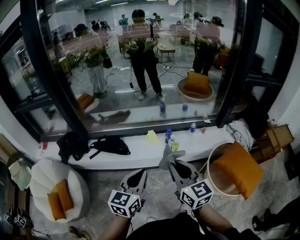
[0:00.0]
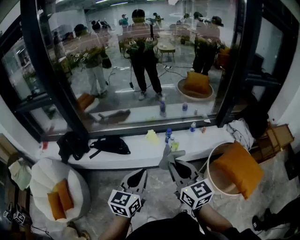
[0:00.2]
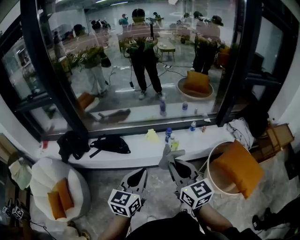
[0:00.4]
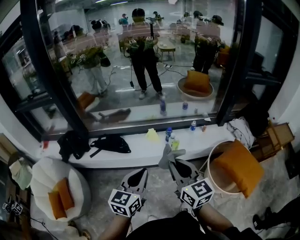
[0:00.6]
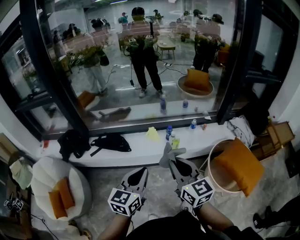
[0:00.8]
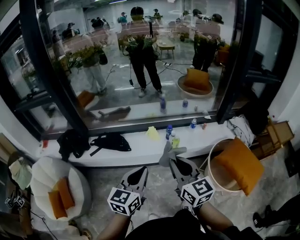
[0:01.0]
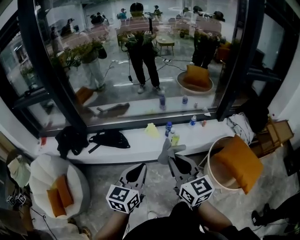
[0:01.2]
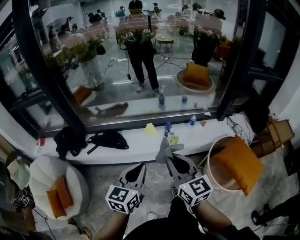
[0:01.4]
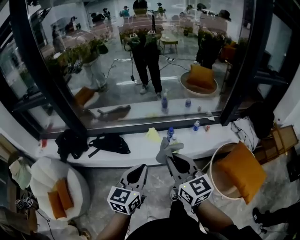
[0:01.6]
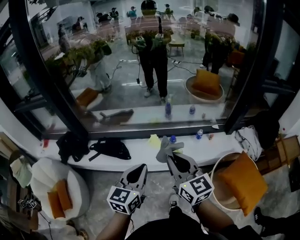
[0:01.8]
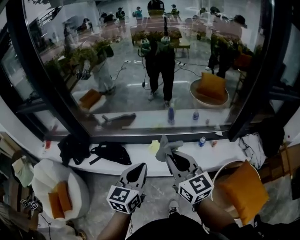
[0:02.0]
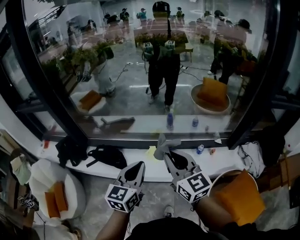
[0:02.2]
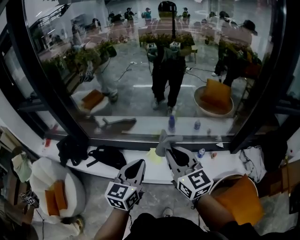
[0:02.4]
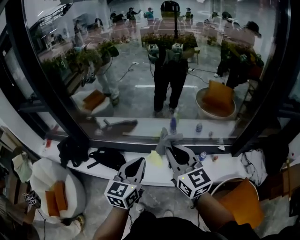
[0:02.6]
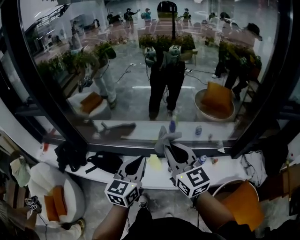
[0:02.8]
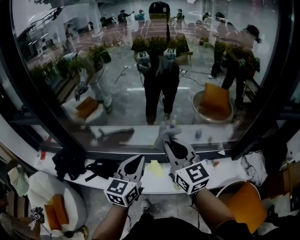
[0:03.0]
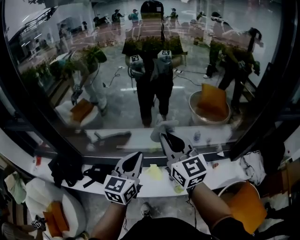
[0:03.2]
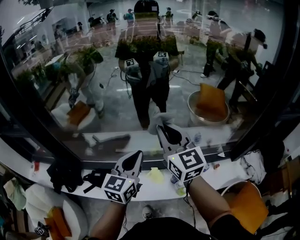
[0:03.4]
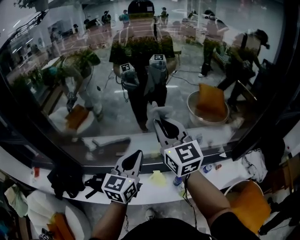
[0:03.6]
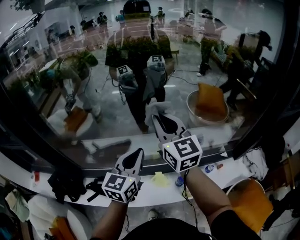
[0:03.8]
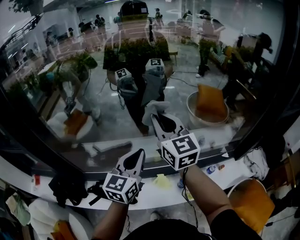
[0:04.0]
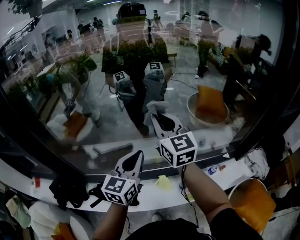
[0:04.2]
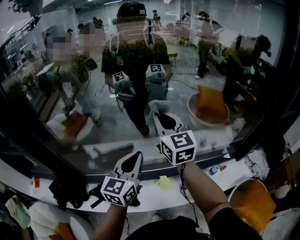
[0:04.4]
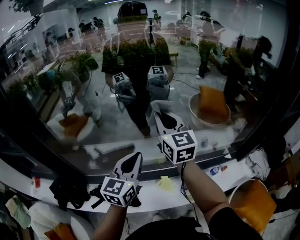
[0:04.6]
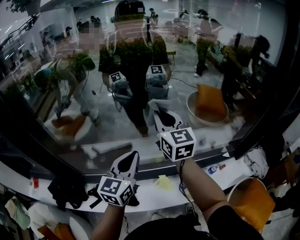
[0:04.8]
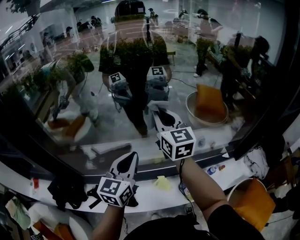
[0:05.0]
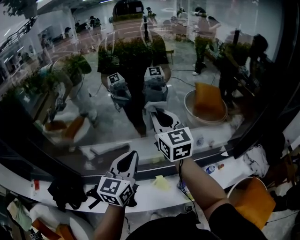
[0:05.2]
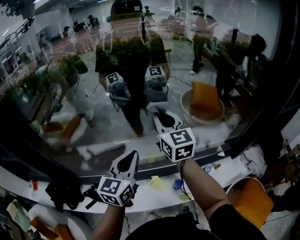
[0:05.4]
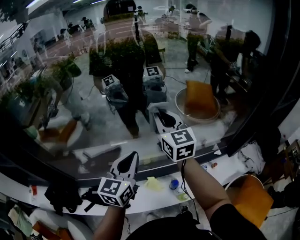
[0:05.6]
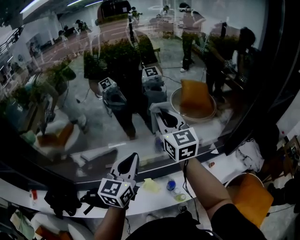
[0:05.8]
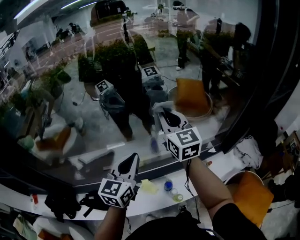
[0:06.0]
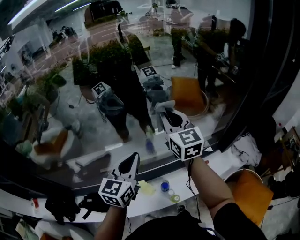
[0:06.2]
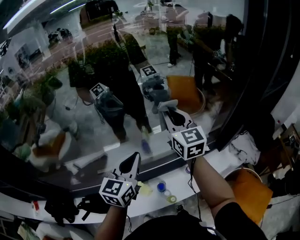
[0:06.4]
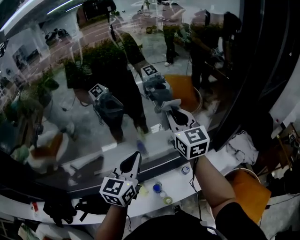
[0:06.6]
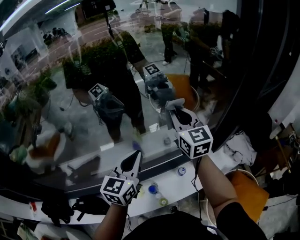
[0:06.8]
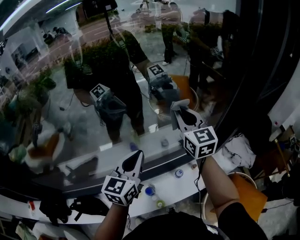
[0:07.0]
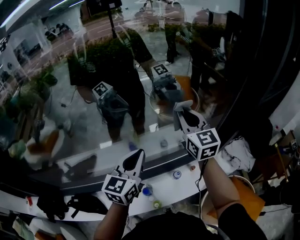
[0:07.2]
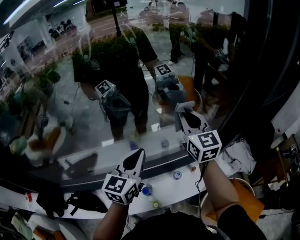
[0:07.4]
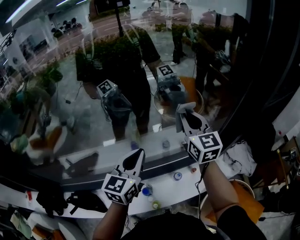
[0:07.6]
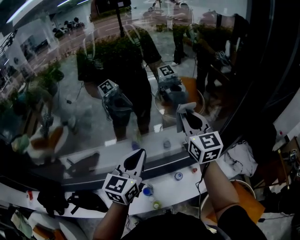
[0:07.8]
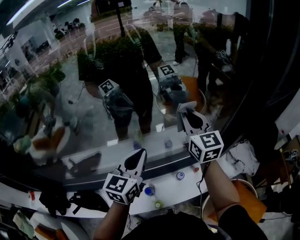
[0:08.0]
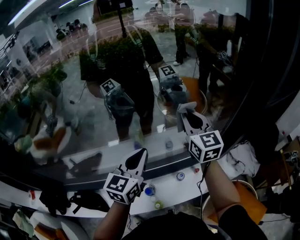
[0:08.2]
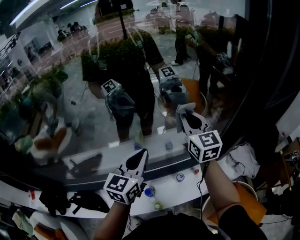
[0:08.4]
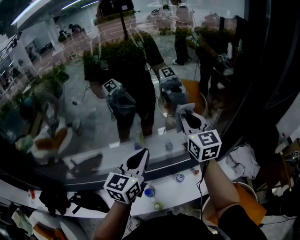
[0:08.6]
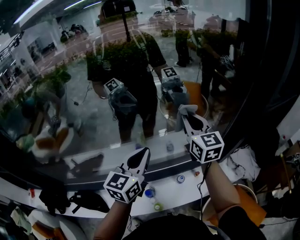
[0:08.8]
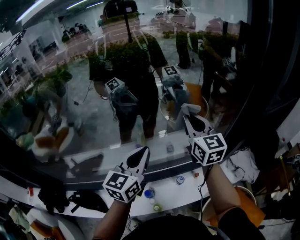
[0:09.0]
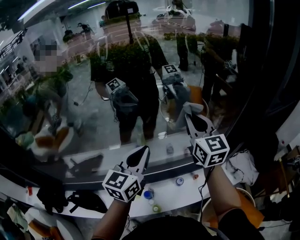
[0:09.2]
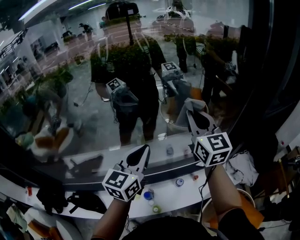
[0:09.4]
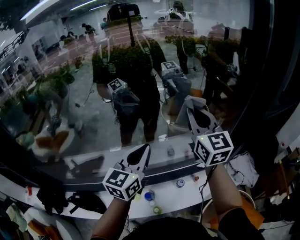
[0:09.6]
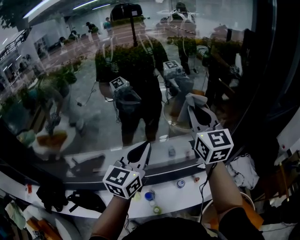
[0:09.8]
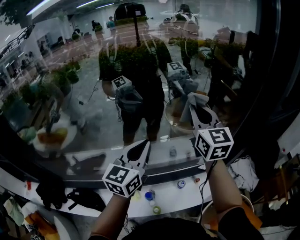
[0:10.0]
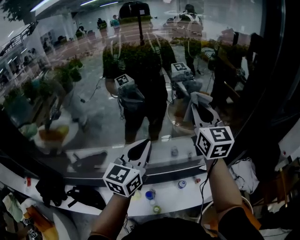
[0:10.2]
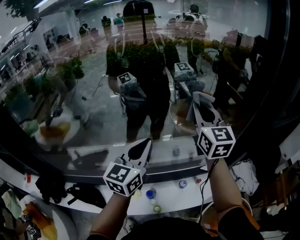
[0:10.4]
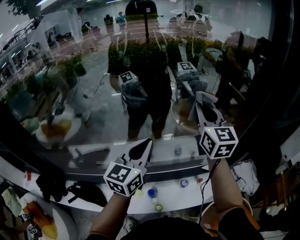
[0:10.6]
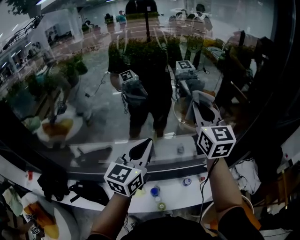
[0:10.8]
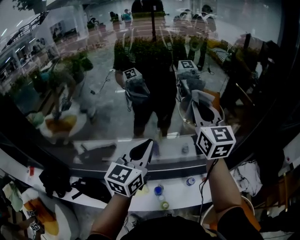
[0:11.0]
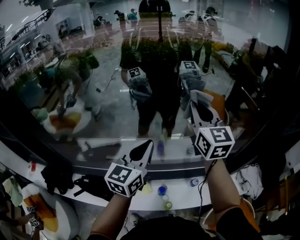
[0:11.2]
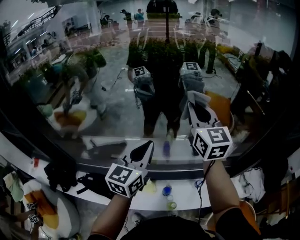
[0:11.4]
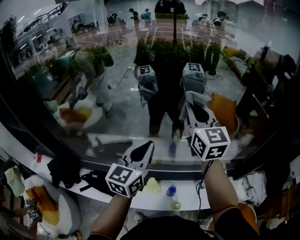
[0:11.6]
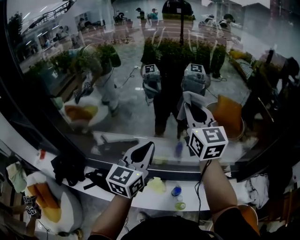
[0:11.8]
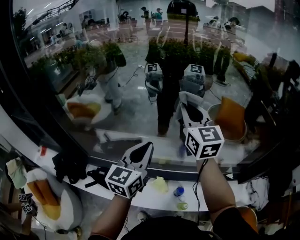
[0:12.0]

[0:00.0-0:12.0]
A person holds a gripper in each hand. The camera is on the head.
0:00.0 to 0:01.6: Both grippers travel together forward, approximately 10 cm.
0:01.6 to 0:03.0: Both grippers travel together forward, about 35 cm.
0:03.0 to 0:04.4: Both grippers travel together forward and to the left, some 20 cm.
0:04.4 to 0:06.0: Both grippers move to the right, roughly 15 cm.
0:06.0 to 0:07.6: The right gripper moves to the right, some 25 cm. Meanwhile the left gripper moves to the right and forward, some 20 cm.
0:07.6 to 0:09.0: The grippers move only a little.
0:09.0 to 0:10.4: The left gripper changes place by approximately 5 cm. The right gripper travels upward by about 10 cm.
0:10.4 to 0:12.0: Both grippers move to the left, roughly 30 cm.

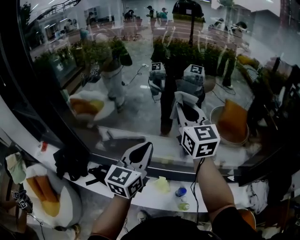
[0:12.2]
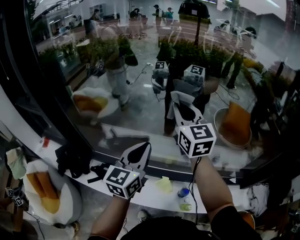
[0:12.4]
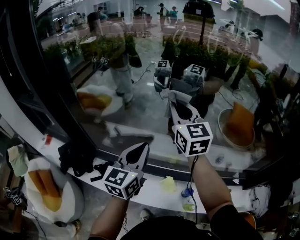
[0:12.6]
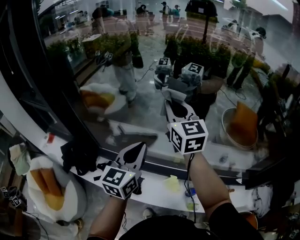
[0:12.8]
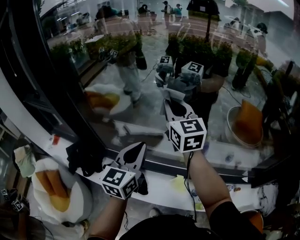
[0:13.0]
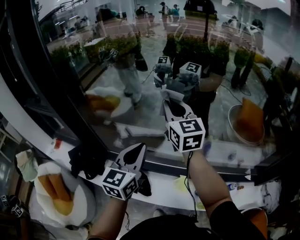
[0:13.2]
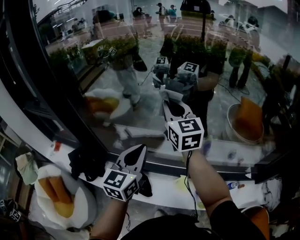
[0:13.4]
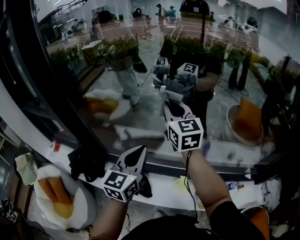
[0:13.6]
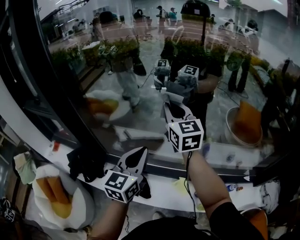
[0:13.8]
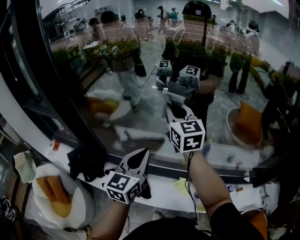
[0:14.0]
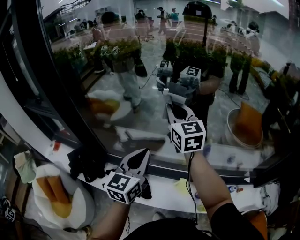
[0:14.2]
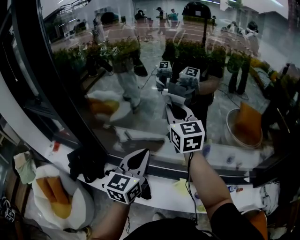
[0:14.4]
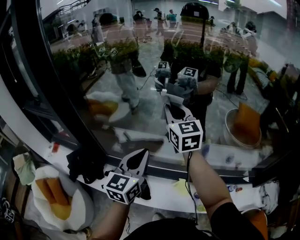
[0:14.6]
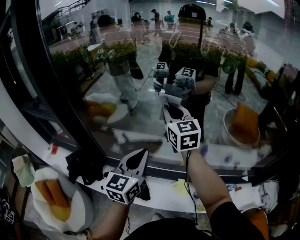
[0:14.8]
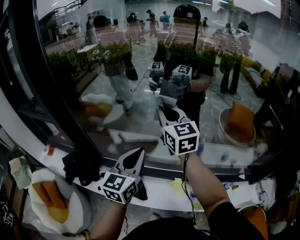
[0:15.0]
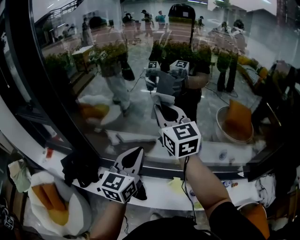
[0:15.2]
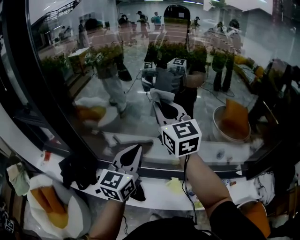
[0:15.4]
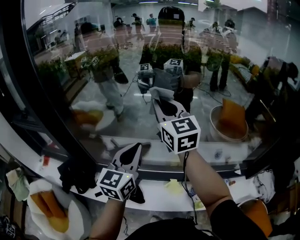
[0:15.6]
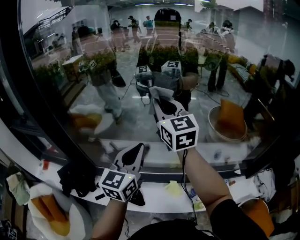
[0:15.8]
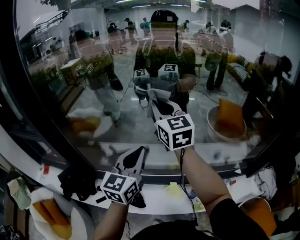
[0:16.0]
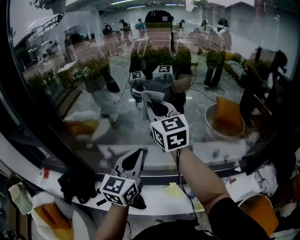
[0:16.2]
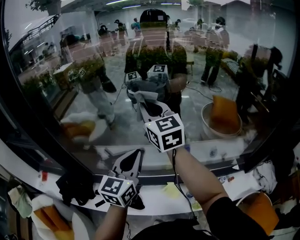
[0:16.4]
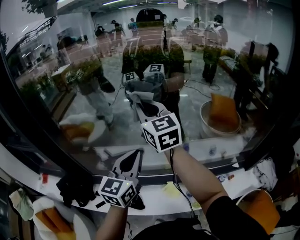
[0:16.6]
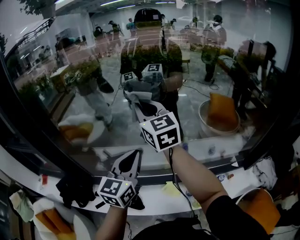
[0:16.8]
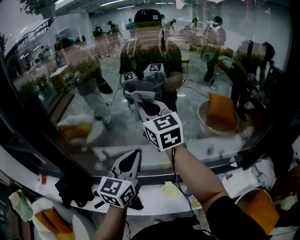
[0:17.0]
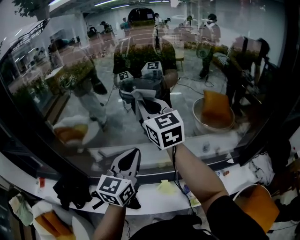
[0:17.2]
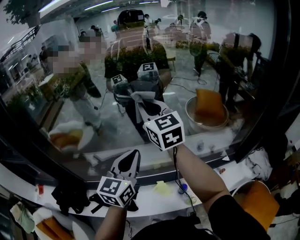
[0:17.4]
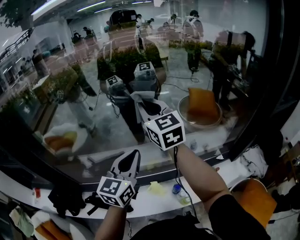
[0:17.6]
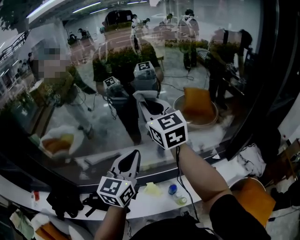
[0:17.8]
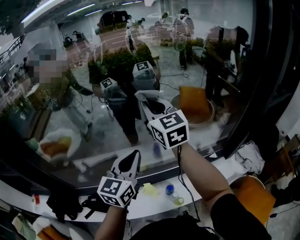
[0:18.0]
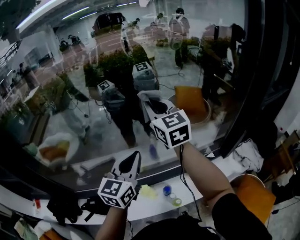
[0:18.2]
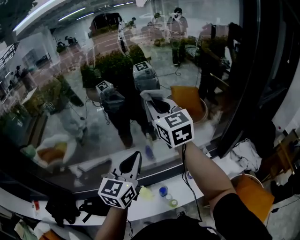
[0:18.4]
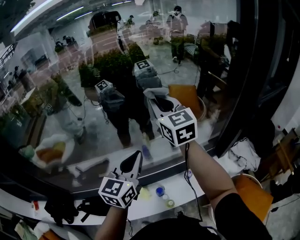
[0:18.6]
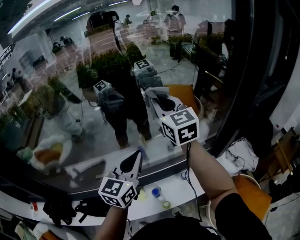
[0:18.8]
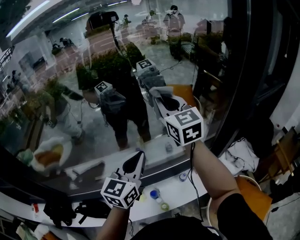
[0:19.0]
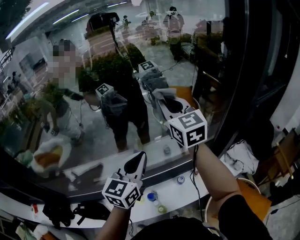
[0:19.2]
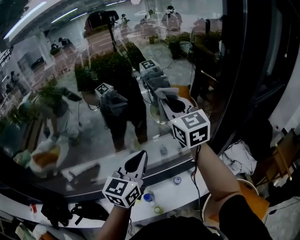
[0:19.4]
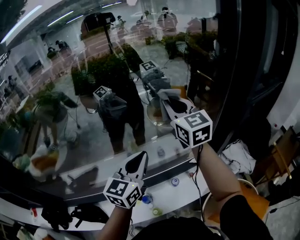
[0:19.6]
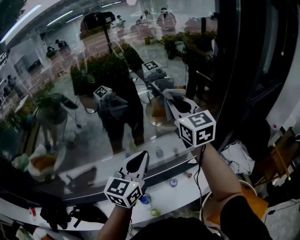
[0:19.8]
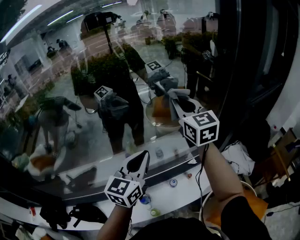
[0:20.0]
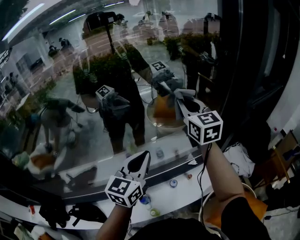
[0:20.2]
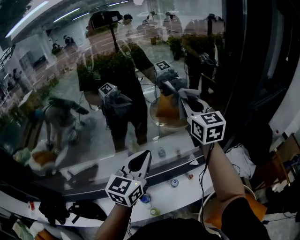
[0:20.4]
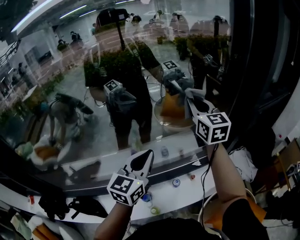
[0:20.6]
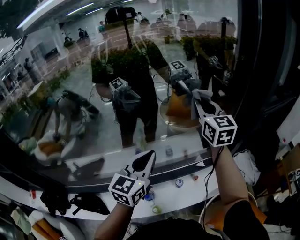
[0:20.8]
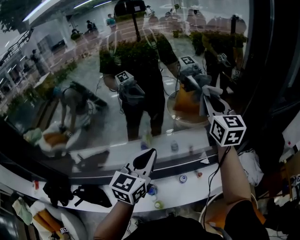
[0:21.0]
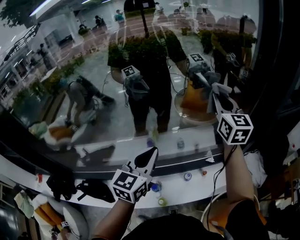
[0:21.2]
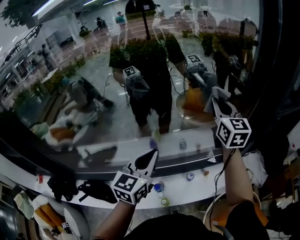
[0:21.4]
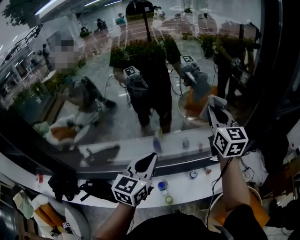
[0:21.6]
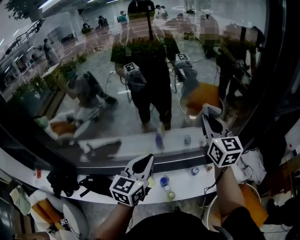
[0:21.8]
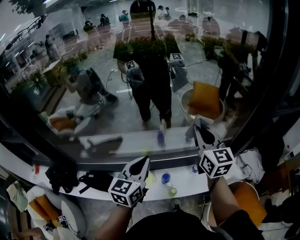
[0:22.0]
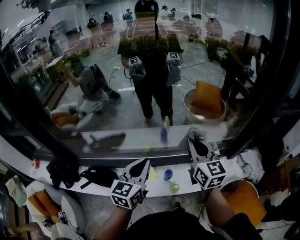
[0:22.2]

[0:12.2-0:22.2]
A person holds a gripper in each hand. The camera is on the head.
0:12.2 to 0:13.6: The two grippers go about 20 cm to the left.
0:13.6 to 0:15.0: The grippers stay close to where they were, moving slightly.
0:15.0 to 0:16.4: The right gripper is displaced upward by some 5 cm. Meanwhile the left gripper goes some 5 cm to the right.
0:16.4 to 0:18.0: The two grippers go about 25 cm to the right.
0:18.0 to 0:19.4: Both grippers travel together to the right, approximately 25 cm.
0:19.4 to 0:20.8: The right gripper heads to the right, covering about 10 cm.
0:20.8 to 0:22.2: The right gripper goes some 35 cm backward and to the left; the left gripper moves to the left and backward, some 30 cm.

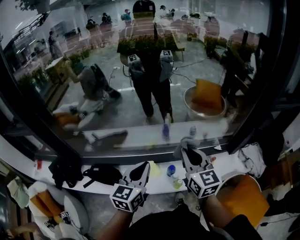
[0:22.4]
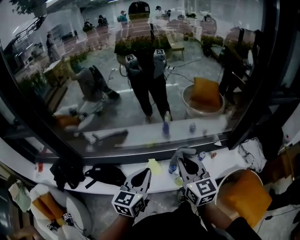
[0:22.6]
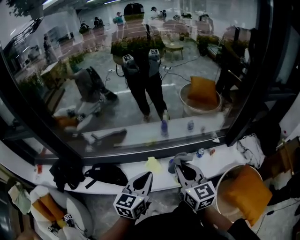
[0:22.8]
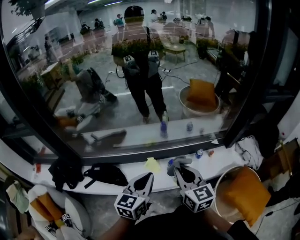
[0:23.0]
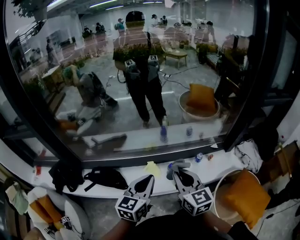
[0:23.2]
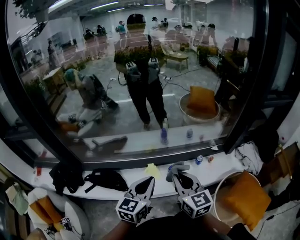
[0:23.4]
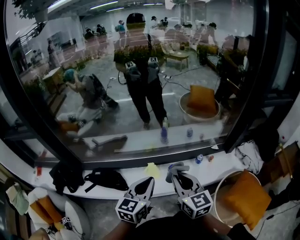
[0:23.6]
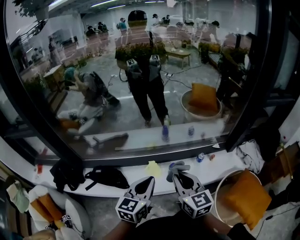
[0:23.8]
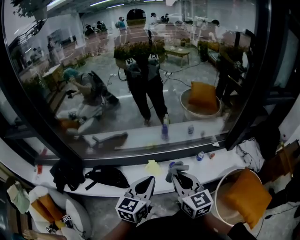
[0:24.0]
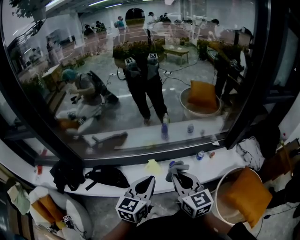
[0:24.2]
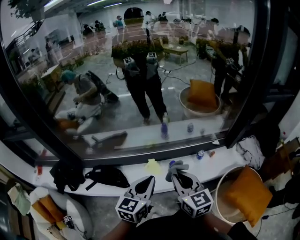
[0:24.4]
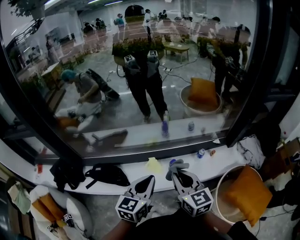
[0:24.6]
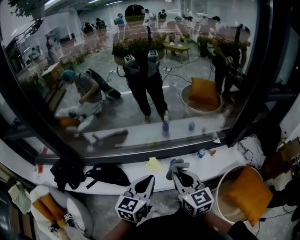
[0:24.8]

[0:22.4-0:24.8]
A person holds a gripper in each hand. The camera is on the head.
0:22.4 to 0:23.6: Both grippers move backward, some 10 cm.
0:23.6 to 0:24.8: There are only small adjustments of the grippers.
